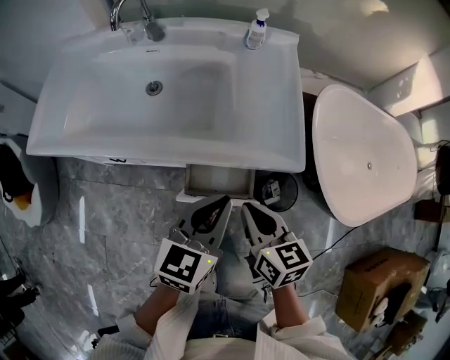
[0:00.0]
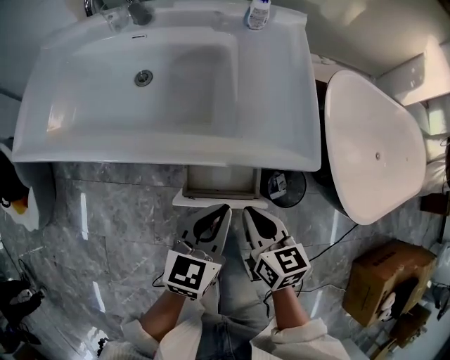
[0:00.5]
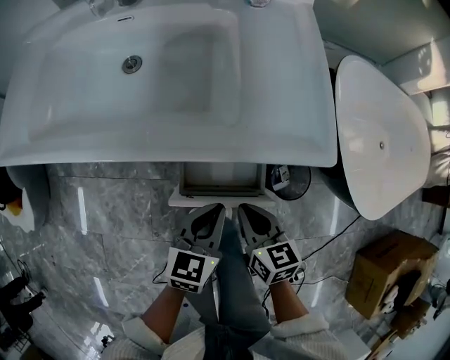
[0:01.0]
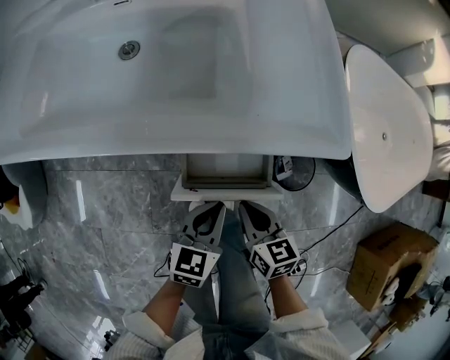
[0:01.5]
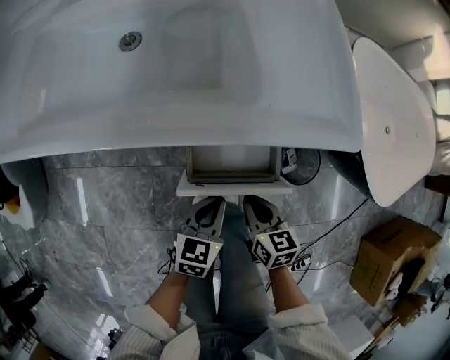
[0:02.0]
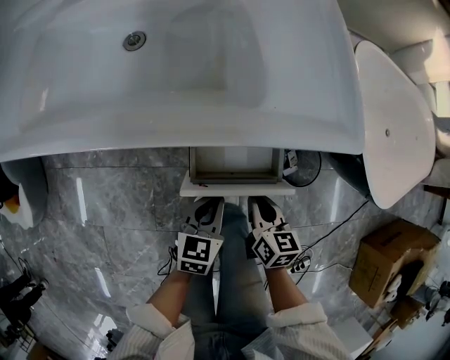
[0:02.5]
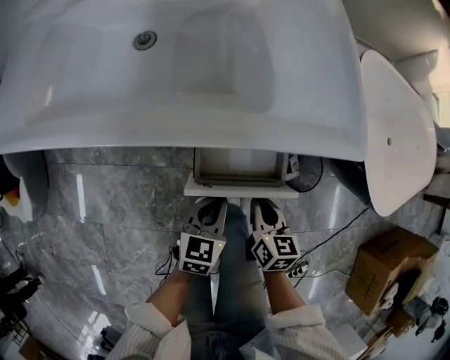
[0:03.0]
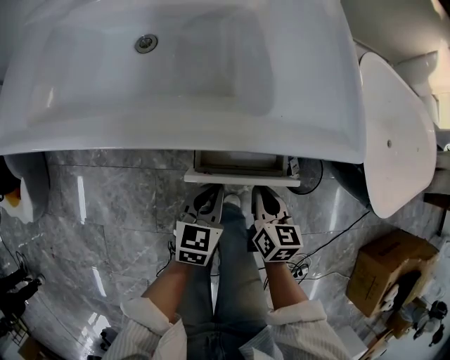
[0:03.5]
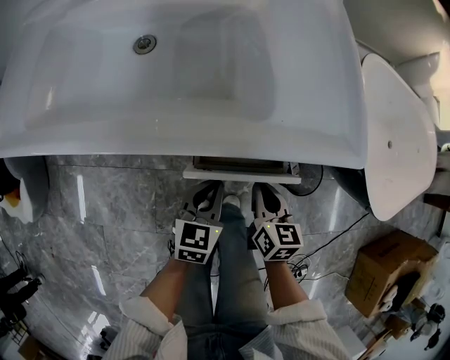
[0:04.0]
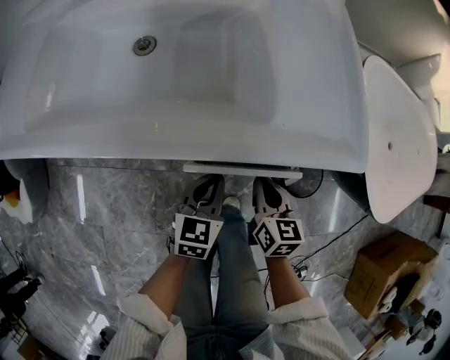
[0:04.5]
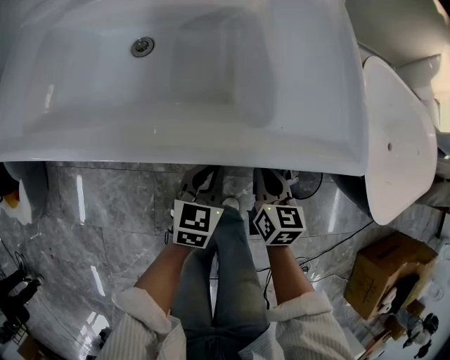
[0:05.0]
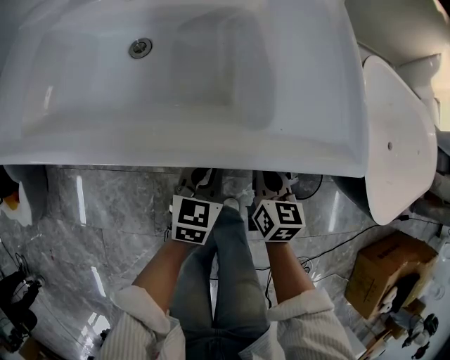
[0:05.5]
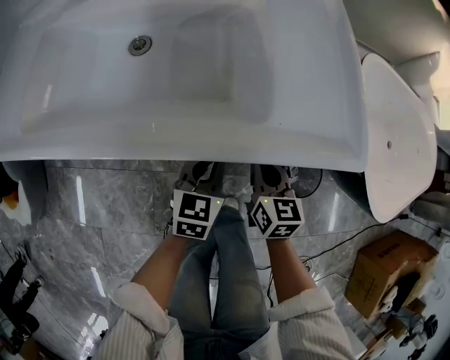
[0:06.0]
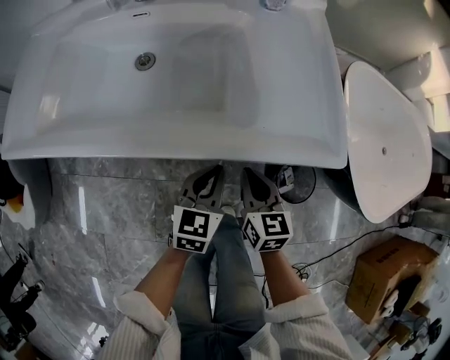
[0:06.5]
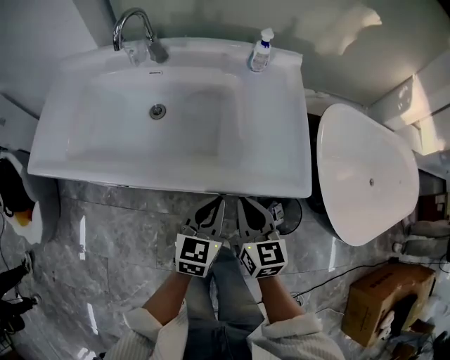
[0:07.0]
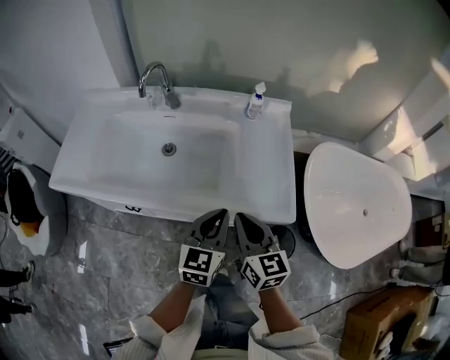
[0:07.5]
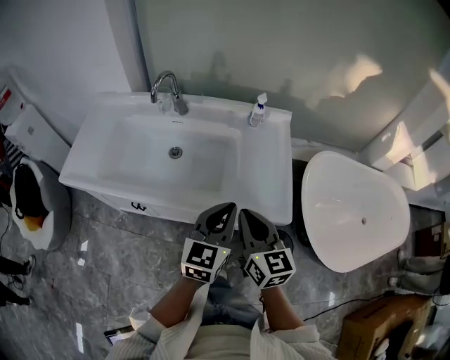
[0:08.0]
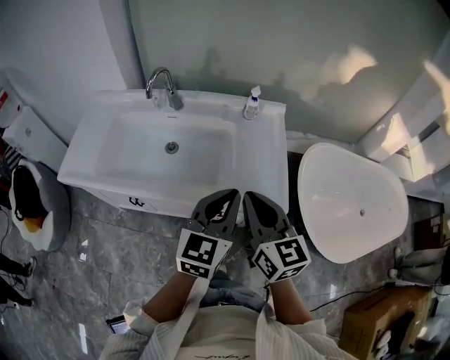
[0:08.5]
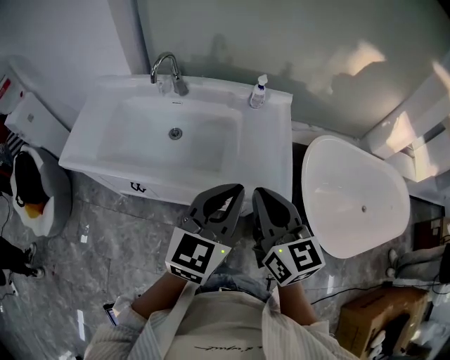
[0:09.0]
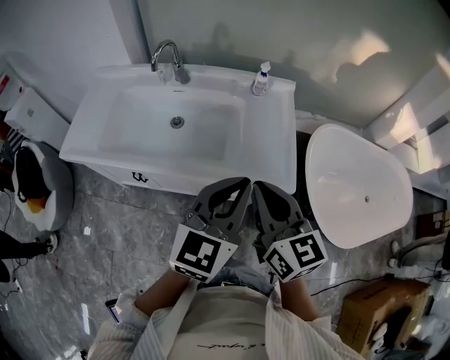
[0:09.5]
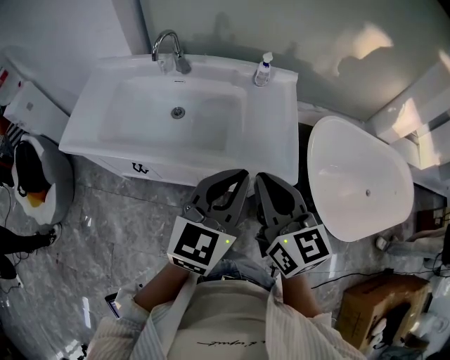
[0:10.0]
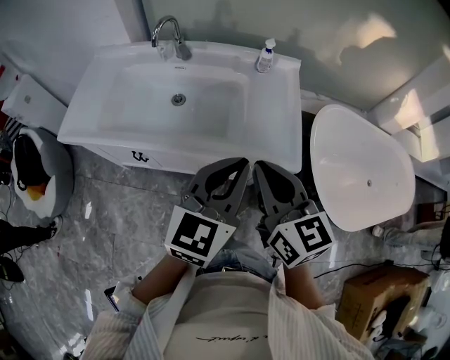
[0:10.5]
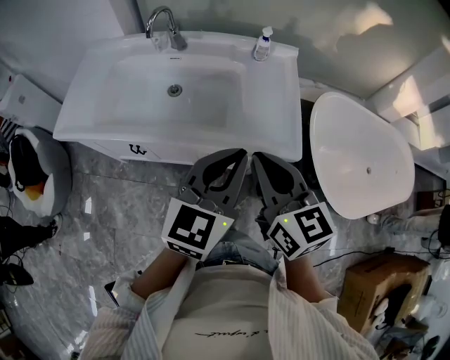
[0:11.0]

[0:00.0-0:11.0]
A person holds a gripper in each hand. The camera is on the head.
0:00.0 to 0:02.0: The grippers both shift downward by about 25 cm.
0:02.0 to 0:03.5: The left gripper moves about 5 cm. Meanwhile the right gripper shifts roughly 5 cm forward.
0:03.5 to 0:05.5: The grippers both shift forward by roughly 10 cm.
0:05.5 to 0:07.5: Both grippers travel together upward, about 25 cm. The right gripper rotates some 20 degrees.
0:07.5 to 0:09.0: The grippers both shift upward by approximately 15 cm.
0:09.0 to 0:11.0: The grippers make only small movements.

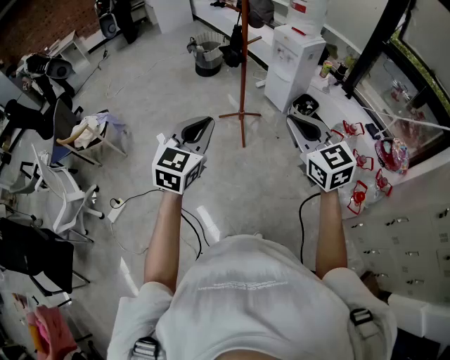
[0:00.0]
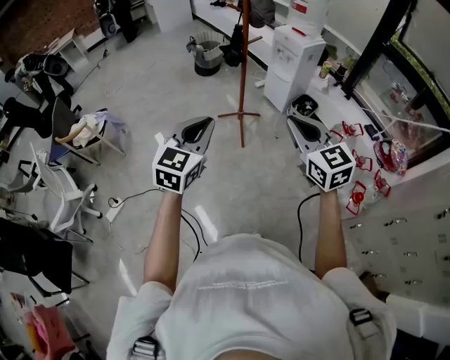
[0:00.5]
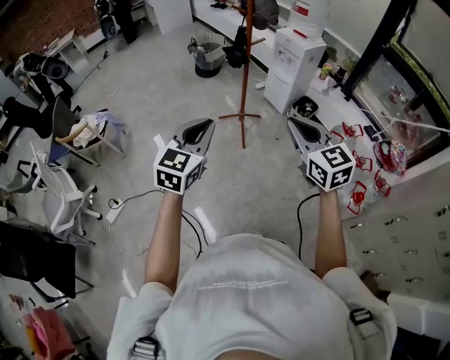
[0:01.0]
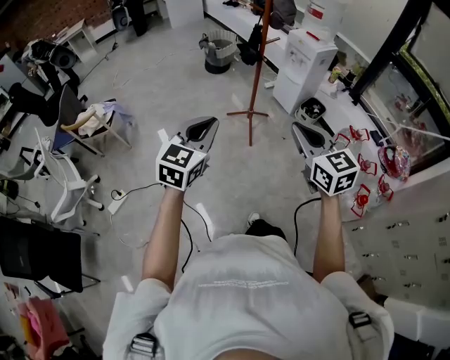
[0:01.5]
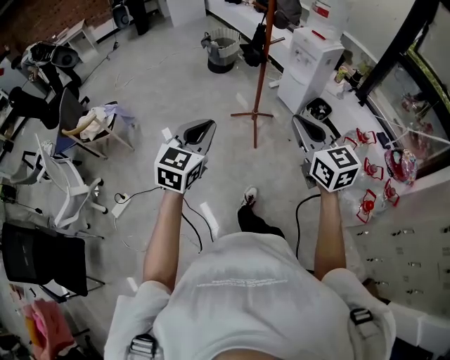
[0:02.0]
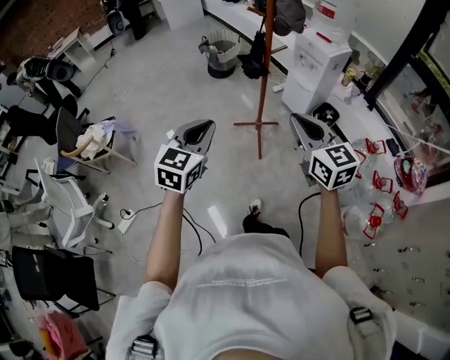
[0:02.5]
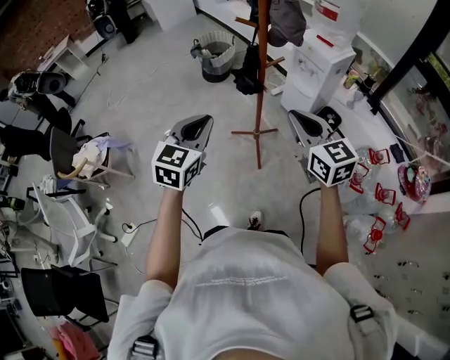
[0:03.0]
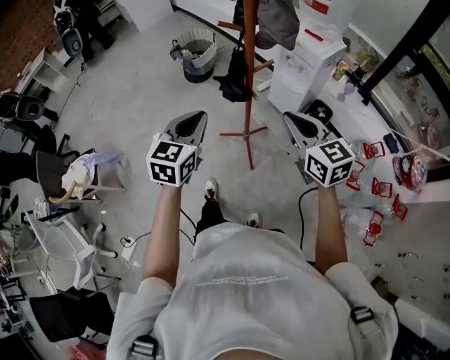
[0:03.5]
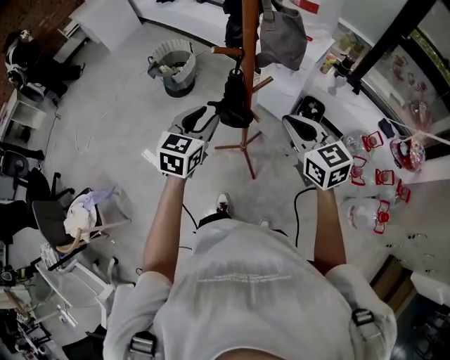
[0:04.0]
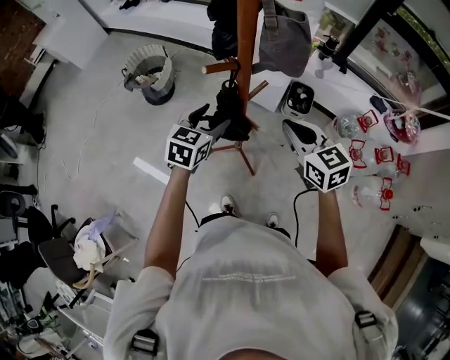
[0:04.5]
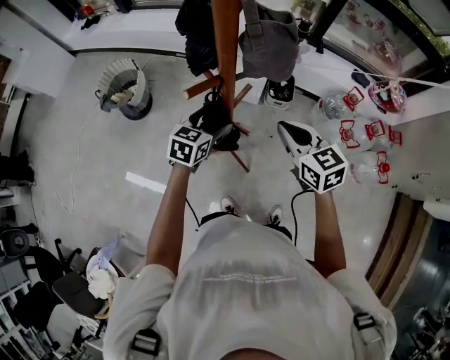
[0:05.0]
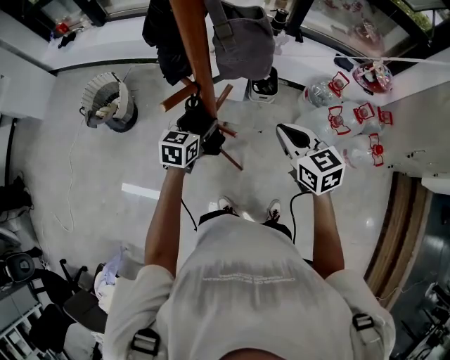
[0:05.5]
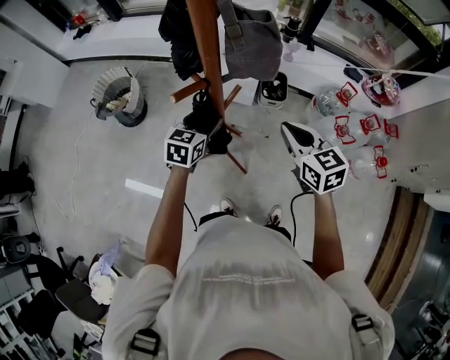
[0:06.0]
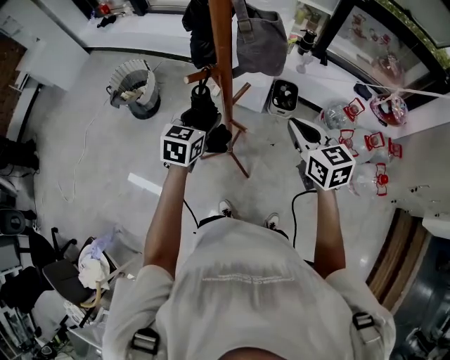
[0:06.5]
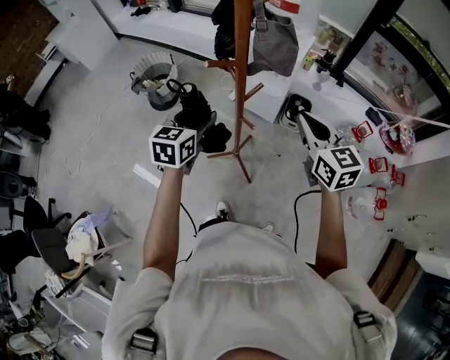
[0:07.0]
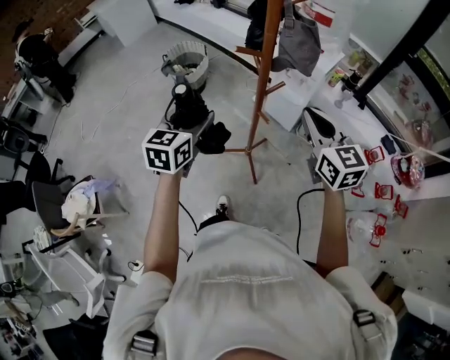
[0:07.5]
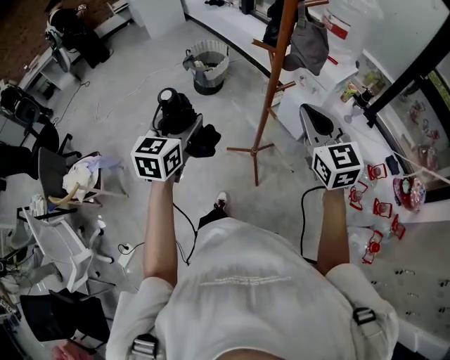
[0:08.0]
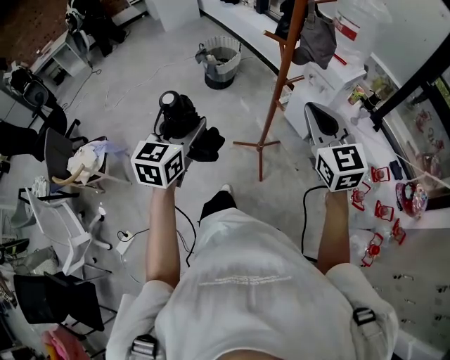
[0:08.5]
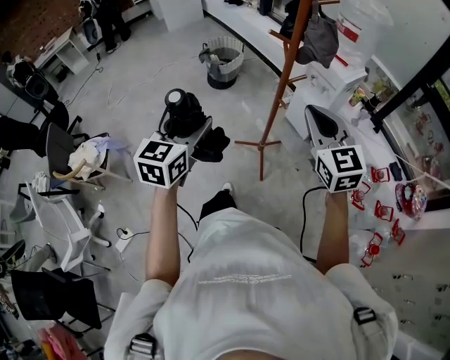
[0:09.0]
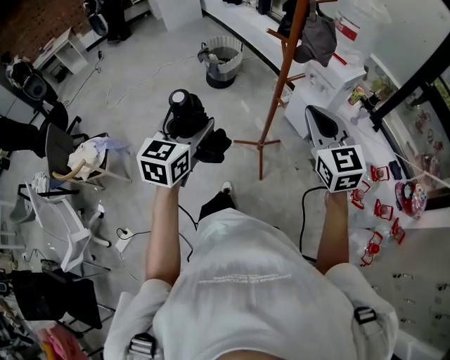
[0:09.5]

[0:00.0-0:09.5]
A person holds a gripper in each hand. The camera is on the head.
0:00.0 to 0:02.0: The two grippers go about 5 cm to the left.
0:02.0 to 0:04.0: The two grippers travel together, forward, roughly 50 cm. The left gripper opens its fingers.
0:04.0 to 0:05.5: The left gripper changes place by roughly 20 cm, swivels roughly 30 degrees, and opens its fingers, while the right gripper is displaced downward by about 10 cm, and turns by approximately 30 degrees.
0:05.5 to 0:07.5: The right gripper travels upward by about 15 cm, and changes its angle by some 30 degrees; the left gripper ends up approximately 30 cm from where it was, and turns by roughly 40 degrees.
0:07.5 to 0:09.5: The left gripper moves backward, roughly 20 cm; the right gripper moves backward, approximately 10 cm.

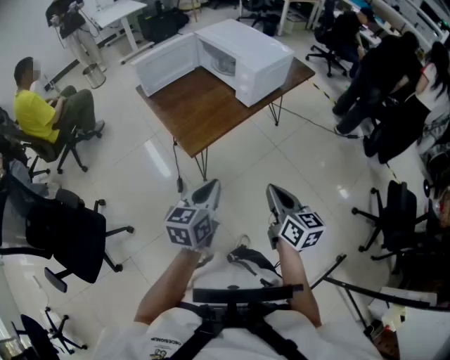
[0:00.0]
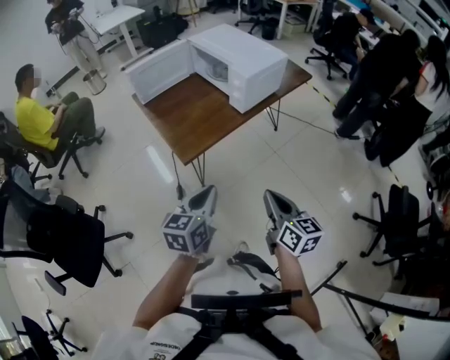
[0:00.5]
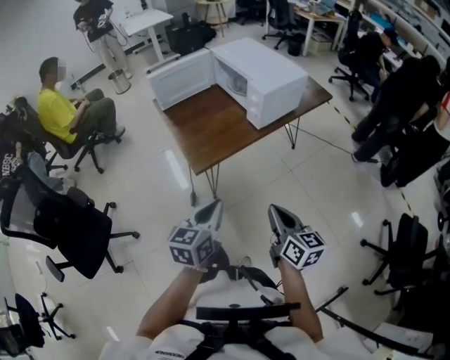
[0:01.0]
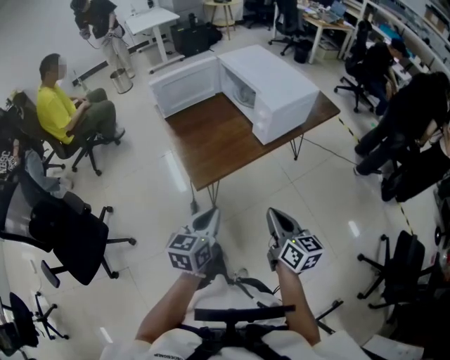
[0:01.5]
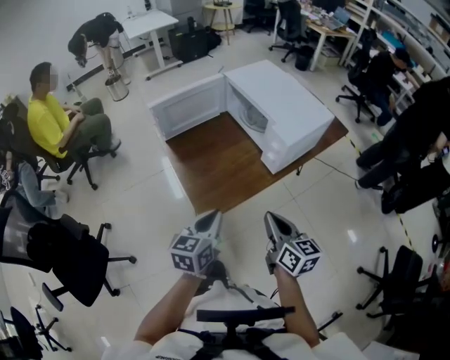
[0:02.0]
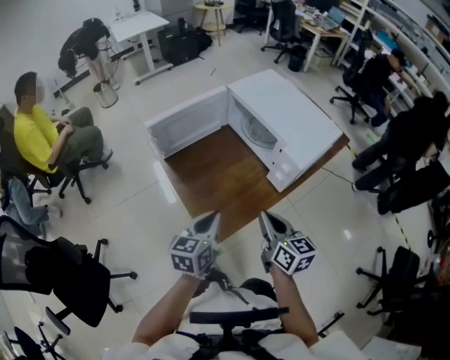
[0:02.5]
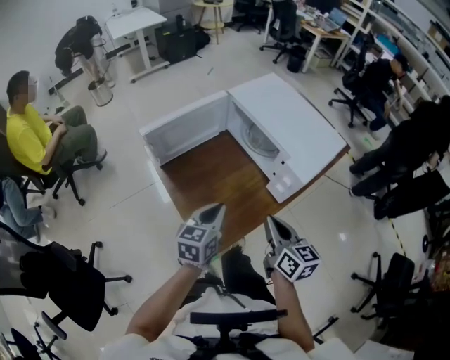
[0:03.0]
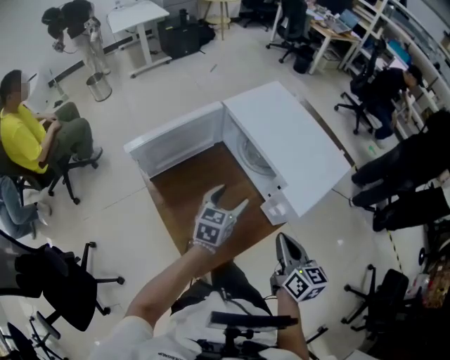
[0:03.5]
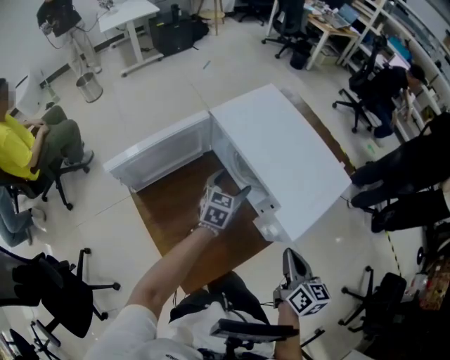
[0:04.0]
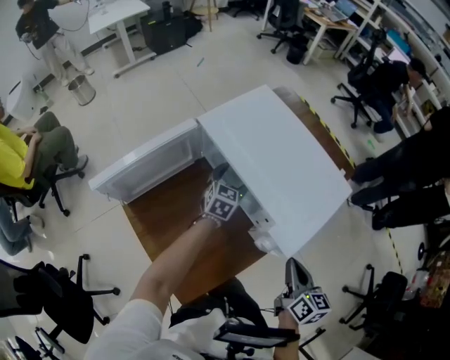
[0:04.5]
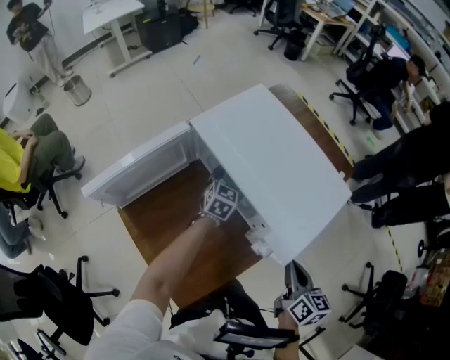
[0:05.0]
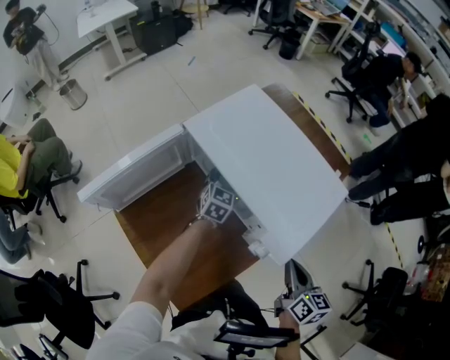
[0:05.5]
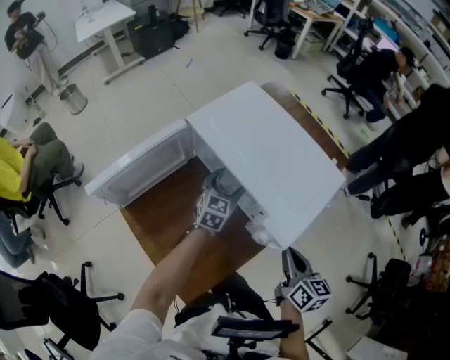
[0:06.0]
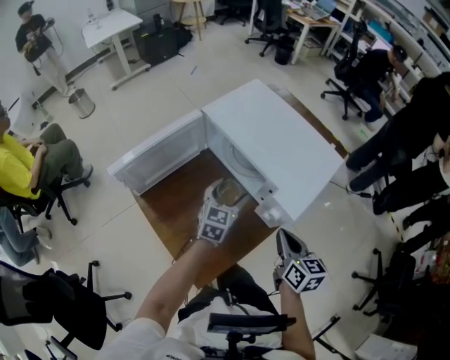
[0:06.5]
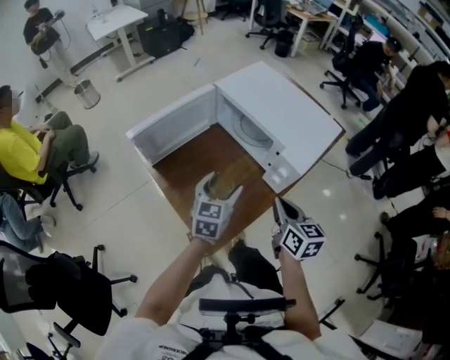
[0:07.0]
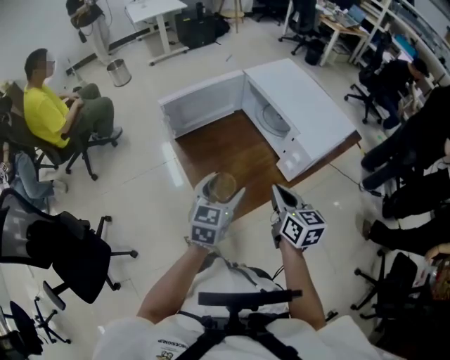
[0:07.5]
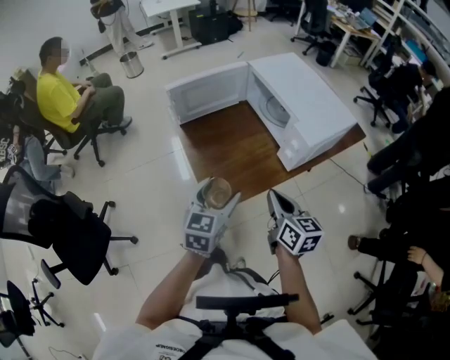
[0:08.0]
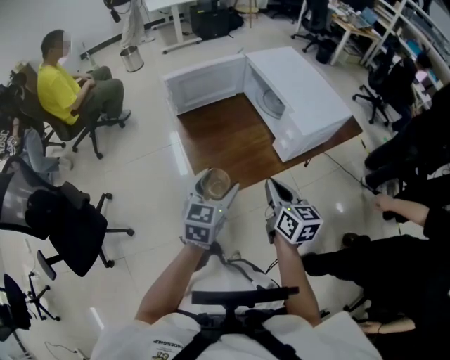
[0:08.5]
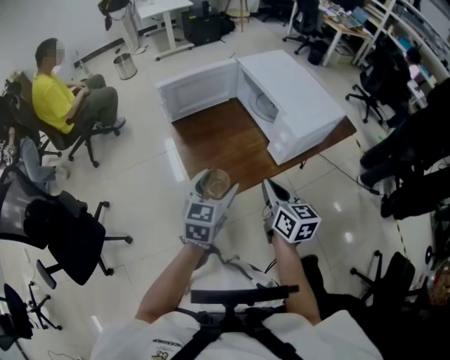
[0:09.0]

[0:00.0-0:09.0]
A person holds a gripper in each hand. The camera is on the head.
0:00.0 to 0:02.0: Both grippers travel together forward, roughly 20 cm.
0:02.0 to 0:04.5: The left gripper heads forward, covering about 50 cm, swivels approximately 20 degrees, and opens up, while the right gripper shifts approximately 25 cm forward and to the right, and swivels some 20 degrees.
0:04.5 to 0:07.0: The left gripper travels backward and upward by about 30 cm, while the right gripper moves to the left and backward, about 10 cm.
0:07.0 to 0:09.0: The left gripper travels backward by about 20 cm; the right gripper travels backward by roughly 10 cm.
